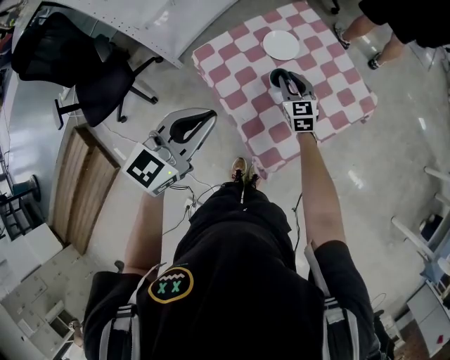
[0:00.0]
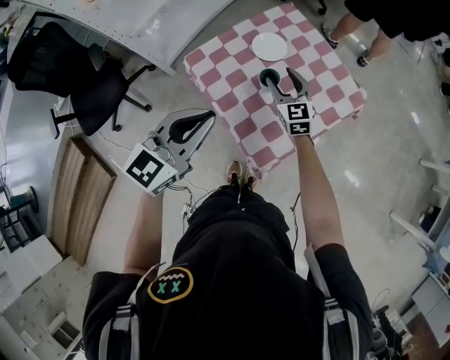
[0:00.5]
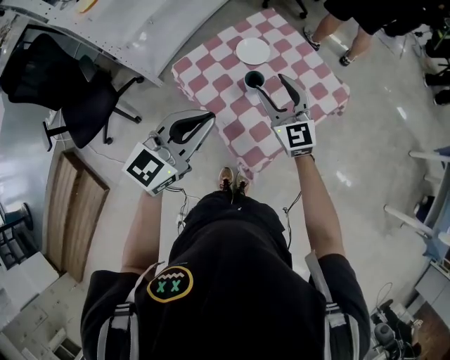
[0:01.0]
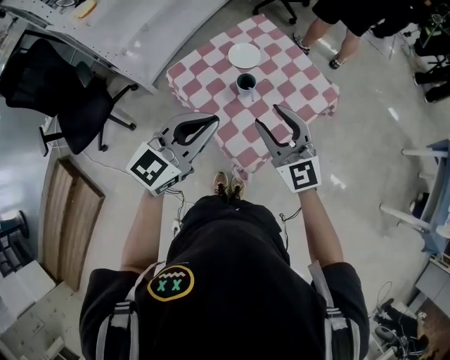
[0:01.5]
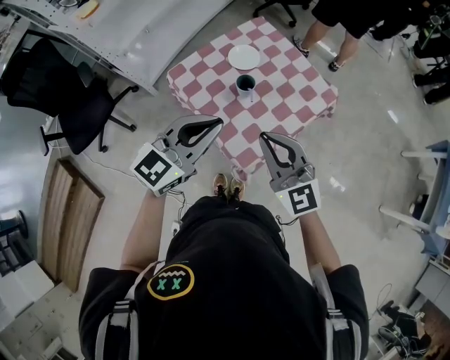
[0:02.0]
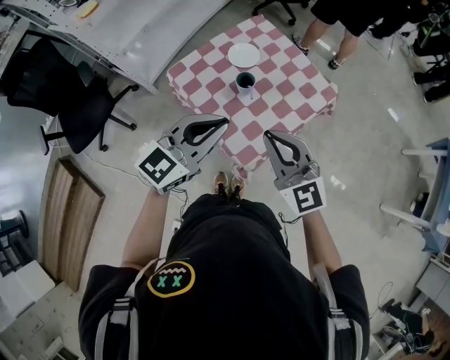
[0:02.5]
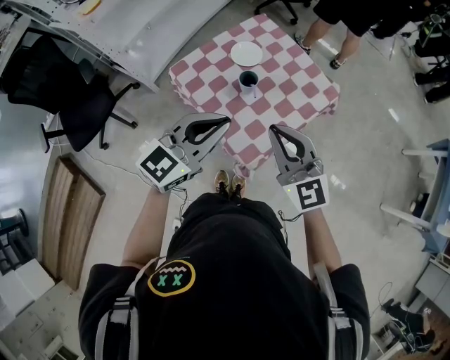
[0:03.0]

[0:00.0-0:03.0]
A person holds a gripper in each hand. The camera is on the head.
0:00.0 to 0:01.5: The left gripper shifts approximately 5 cm to the right. The right gripper goes approximately 30 cm upward and backward, changes its angle by some 30 degrees, and opens.
0:01.5 to 0:03.0: The right gripper heads backward, covering about 5 cm, and closes up.

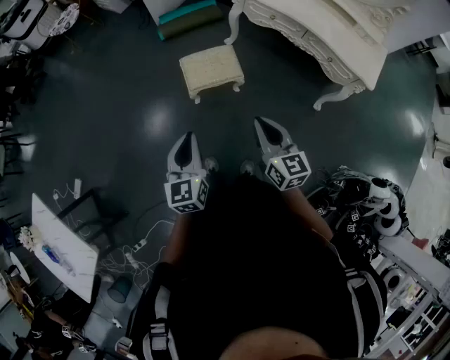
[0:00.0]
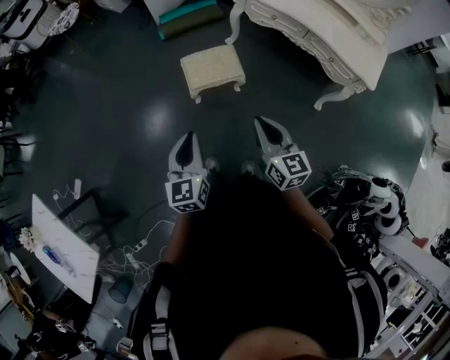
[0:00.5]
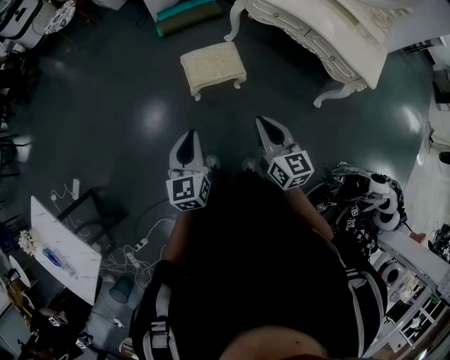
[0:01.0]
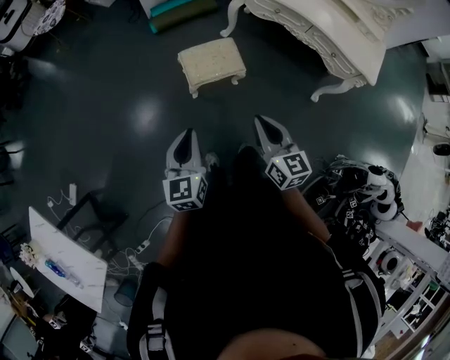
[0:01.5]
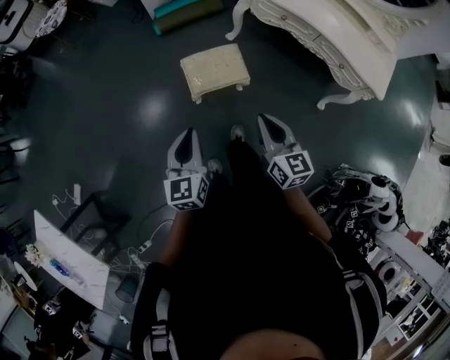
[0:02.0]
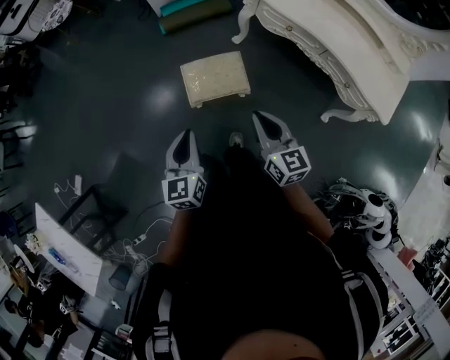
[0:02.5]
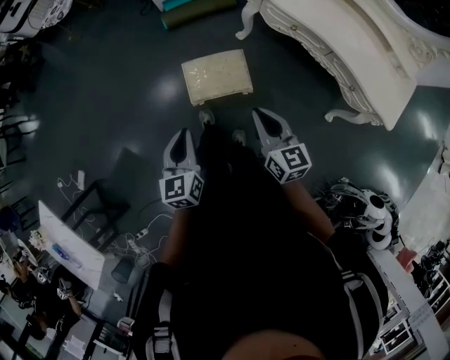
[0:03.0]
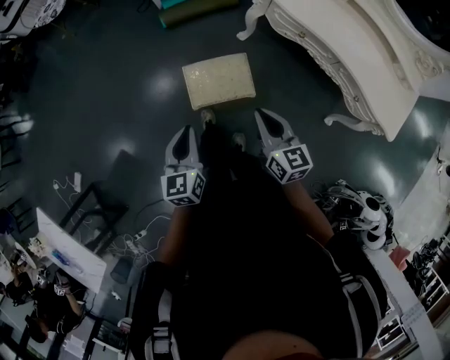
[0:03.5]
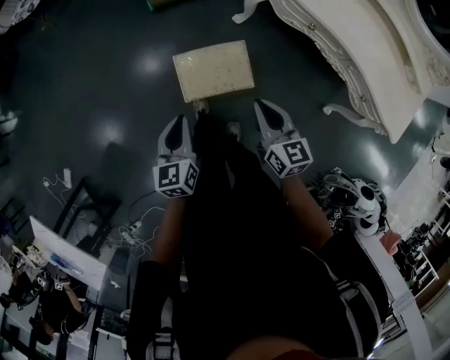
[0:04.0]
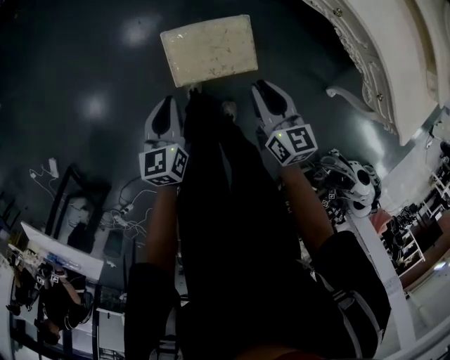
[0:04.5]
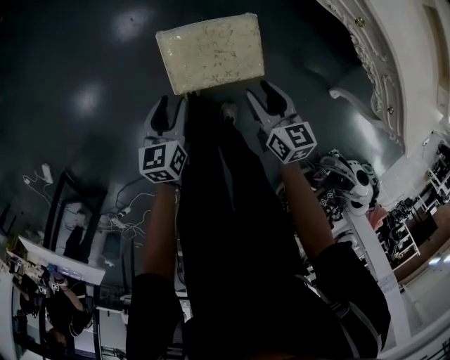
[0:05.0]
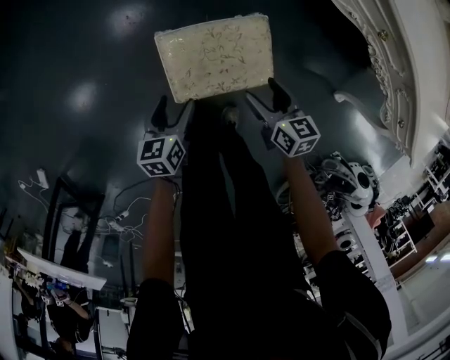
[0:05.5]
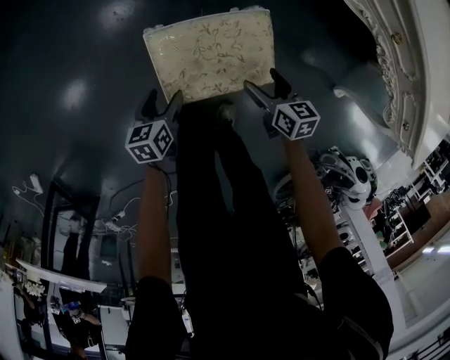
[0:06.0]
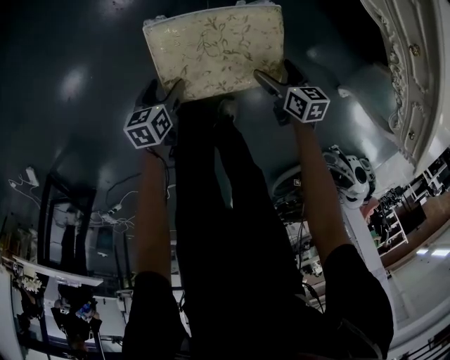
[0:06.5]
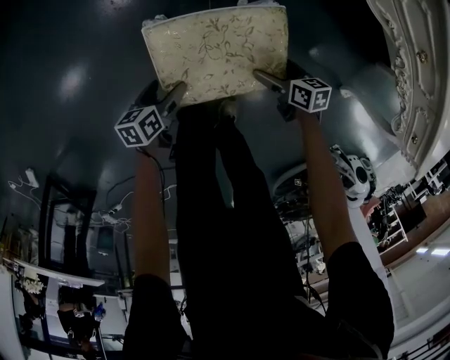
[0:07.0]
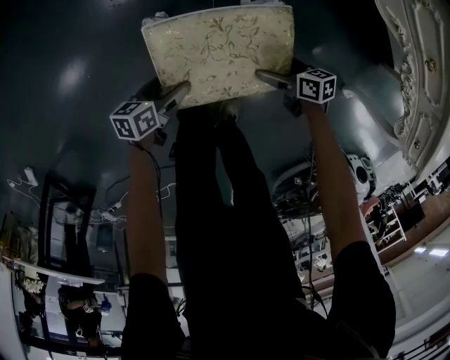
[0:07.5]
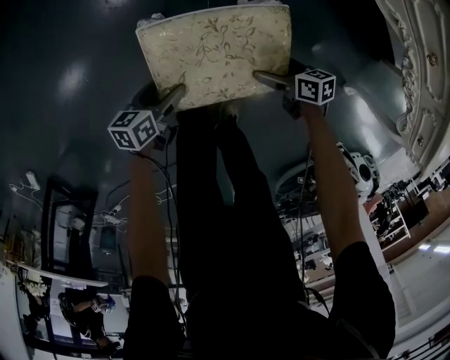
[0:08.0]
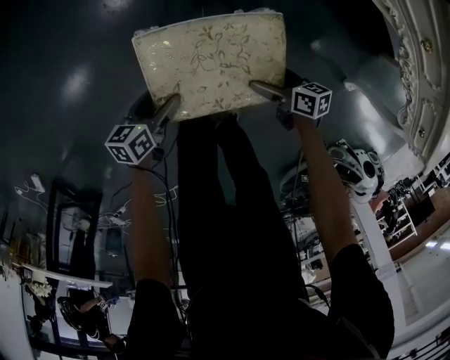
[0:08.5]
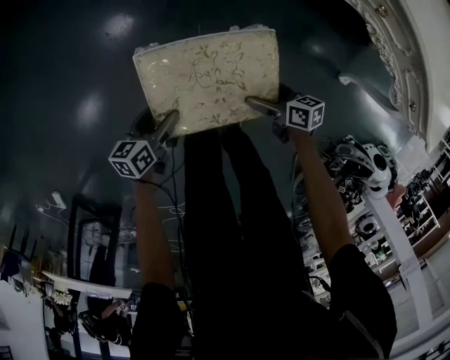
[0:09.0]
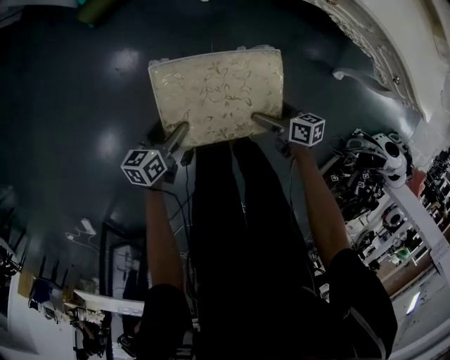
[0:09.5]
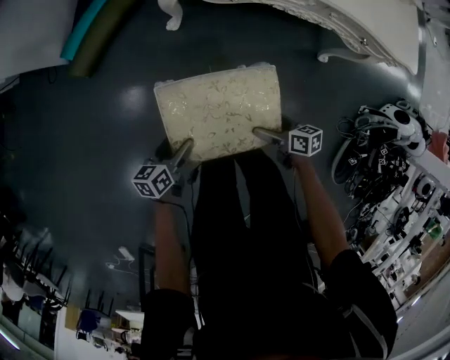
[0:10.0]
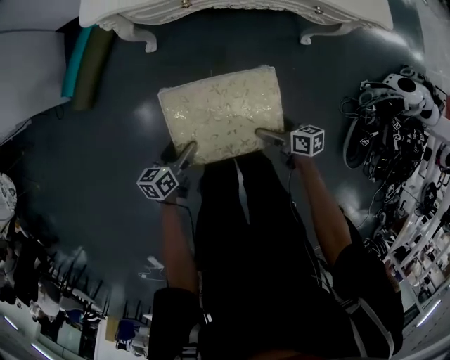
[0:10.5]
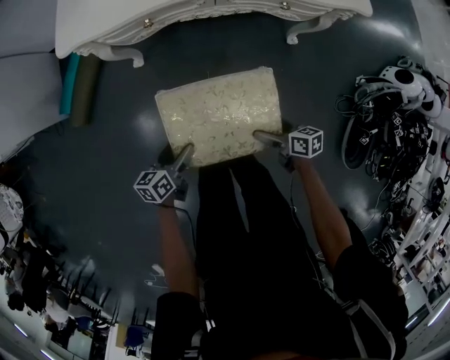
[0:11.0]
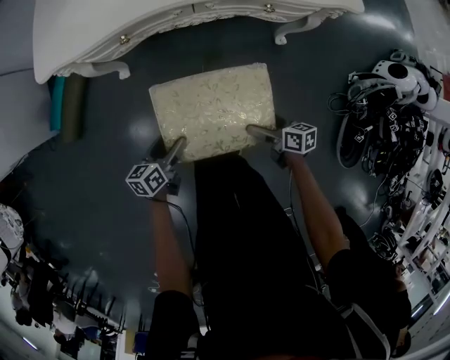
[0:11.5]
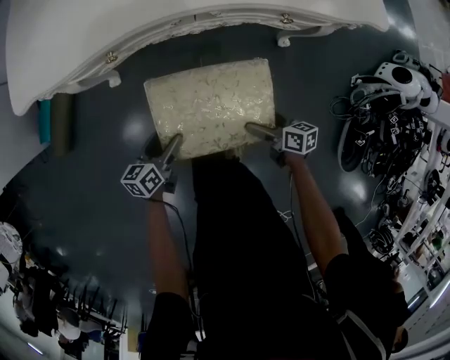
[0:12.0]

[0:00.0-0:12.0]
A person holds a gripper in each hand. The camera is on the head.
0:00.0 to 0:02.0: Both grippers move forward, some 10 cm.
0:02.0 to 0:04.0: The grippers both shift forward and downward by approximately 25 cm.
0:04.0 to 0:06.0: Both grippers move downward, about 40 cm. The right gripper turns by roughly 30 degrees, and opens up, while the left gripper changes its angle by some 30 degrees, and opens up.
0:06.0 to 0:08.0: The right gripper is displaced downward by about 10 cm, and changes its angle by about 20 degrees; the left gripper is displaced downward by roughly 5 cm.
0:08.0 to 0:10.0: The grippers both shift upward by some 25 cm. The left gripper changes its angle by about 30 degrees; the right gripper swivels some 40 degrees.
0:10.0 to 0:12.0: The left gripper heads to the right and forward, covering some 30 cm, while the right gripper goes about 25 cm to the right, and changes its angle by roughly 20 degrees.

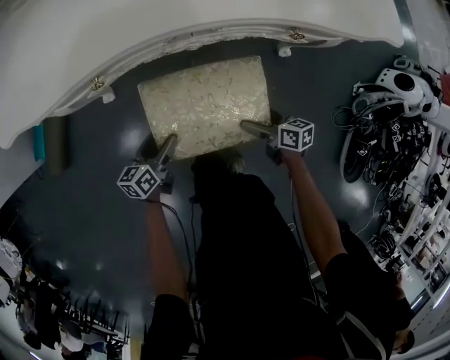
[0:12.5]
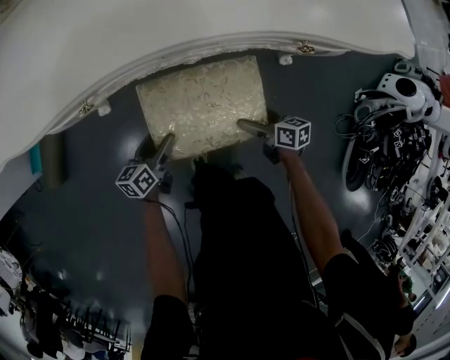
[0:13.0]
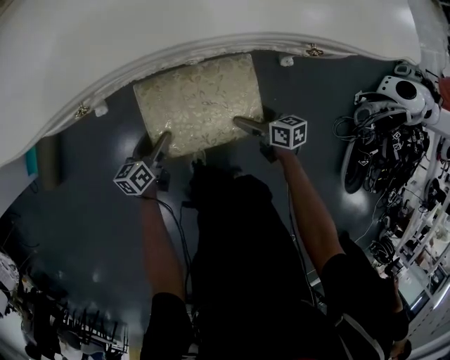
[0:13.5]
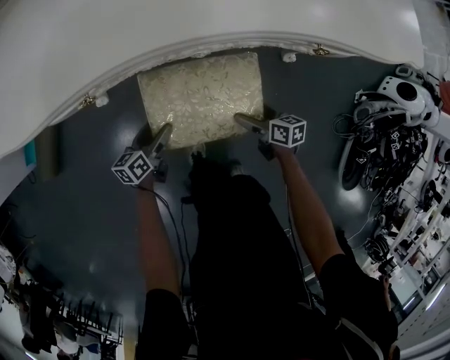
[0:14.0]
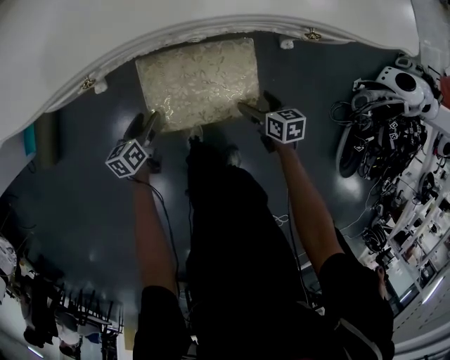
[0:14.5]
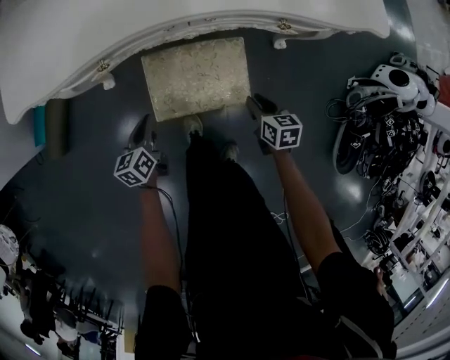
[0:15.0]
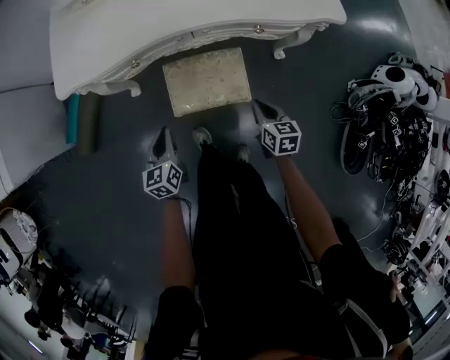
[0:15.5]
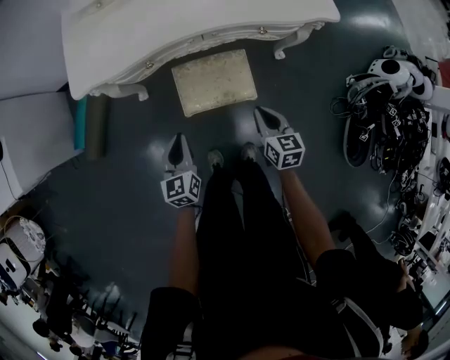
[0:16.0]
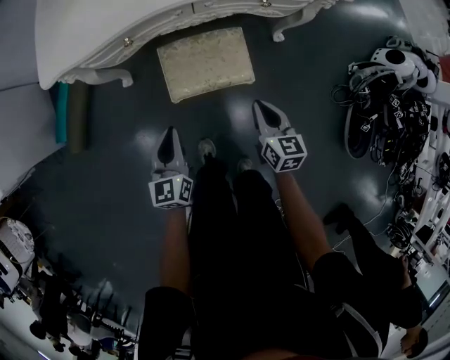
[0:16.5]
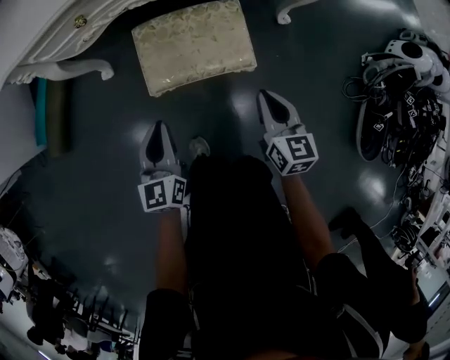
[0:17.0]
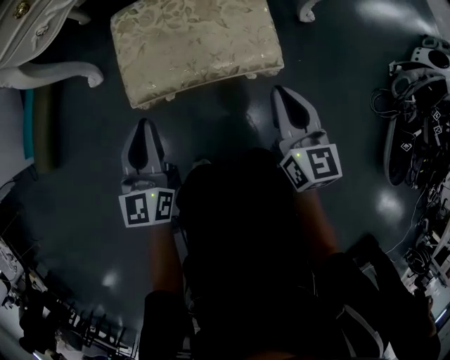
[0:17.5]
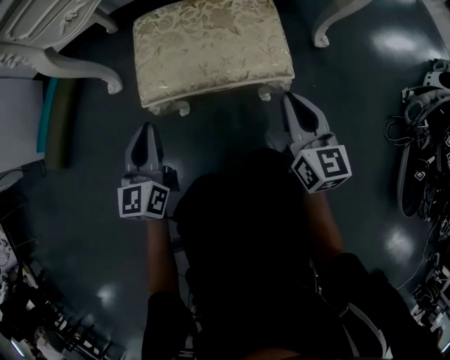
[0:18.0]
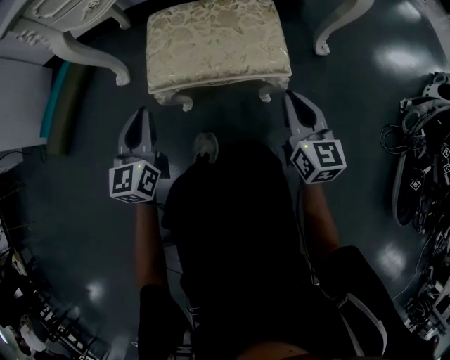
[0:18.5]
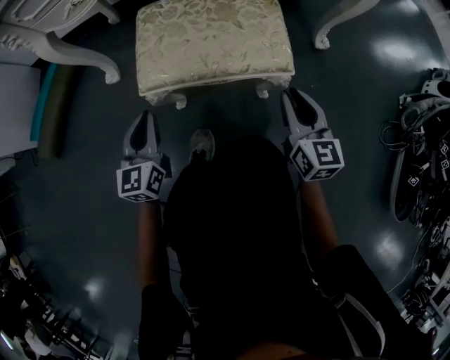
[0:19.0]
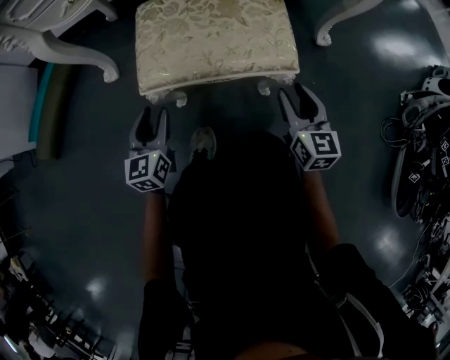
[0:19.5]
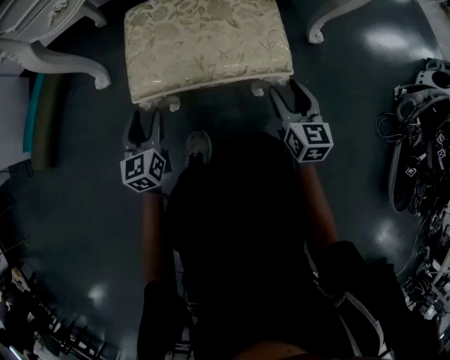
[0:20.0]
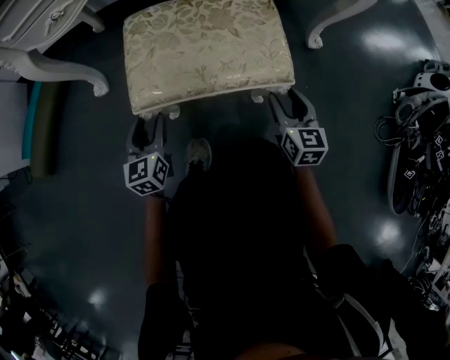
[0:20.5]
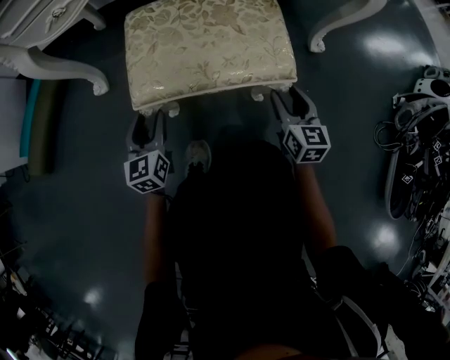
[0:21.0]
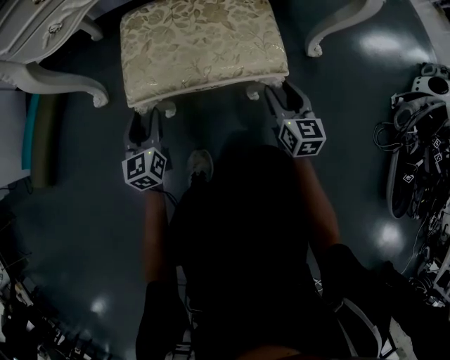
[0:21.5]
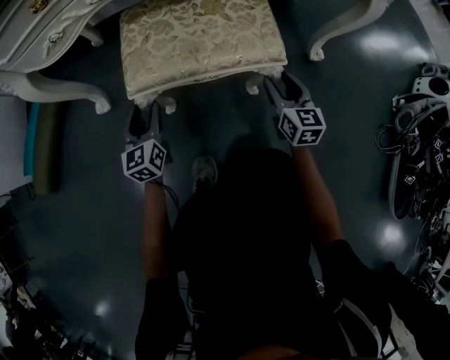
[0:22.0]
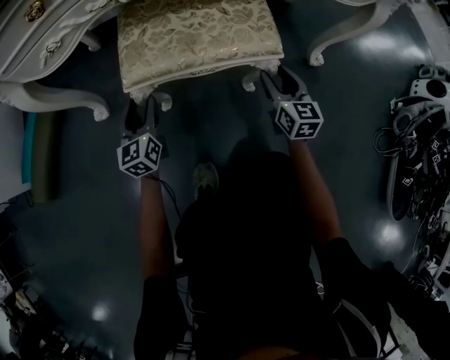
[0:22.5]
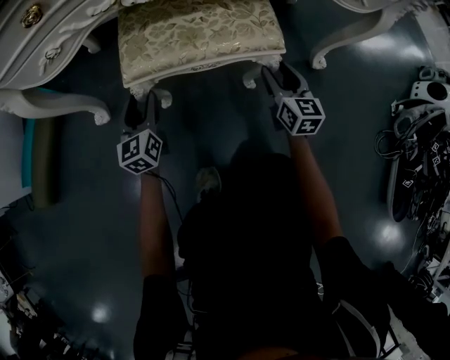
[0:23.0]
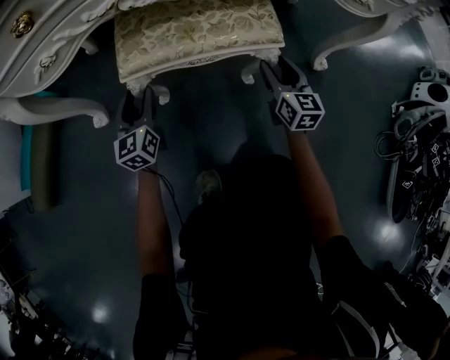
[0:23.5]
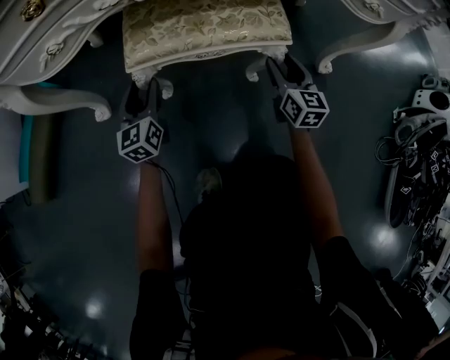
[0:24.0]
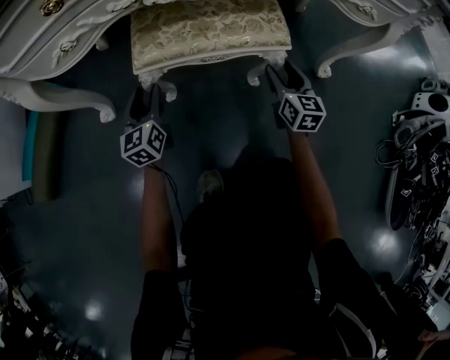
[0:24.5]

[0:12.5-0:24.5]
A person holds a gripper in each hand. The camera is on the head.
0:12.5 to 0:14.5: The left gripper shifts roughly 5 cm downward; the right gripper changes its angle by approximately 20 degrees.
0:14.5 to 0:16.5: Both grippers move upward and backward, some 35 cm. The right gripper turns by approximately 30 degrees, and closes. Meanwhile the left gripper swivels some 40 degrees, and closes its fingers.
0:16.5 to 0:18.5: The two grippers go about 25 cm downward. The right gripper swivels approximately 20 degrees.
0:18.5 to 0:20.5: The two grippers go about 15 cm downward. The right gripper opens up, while the left gripper opens.
0:20.5 to 0:22.5: Both grippers move forward, roughly 15 cm.
0:22.5 to 0:24.5: The two grippers go roughly 5 cm forward.
